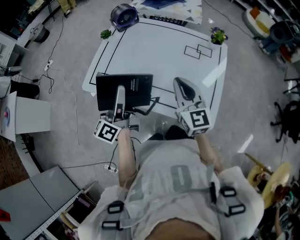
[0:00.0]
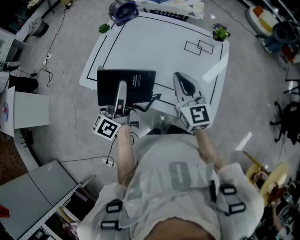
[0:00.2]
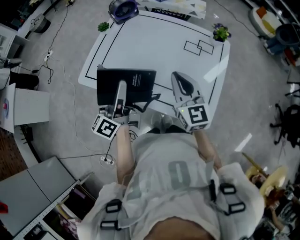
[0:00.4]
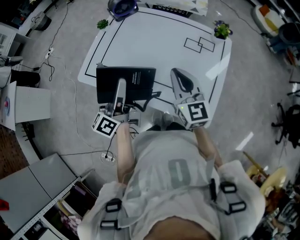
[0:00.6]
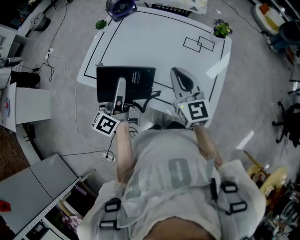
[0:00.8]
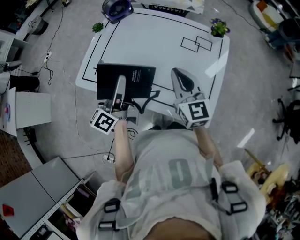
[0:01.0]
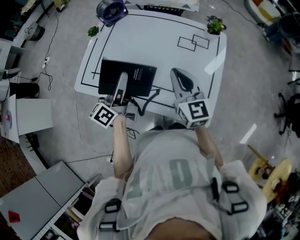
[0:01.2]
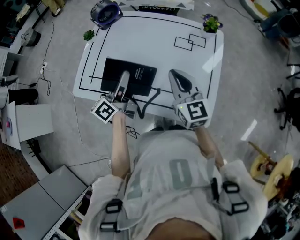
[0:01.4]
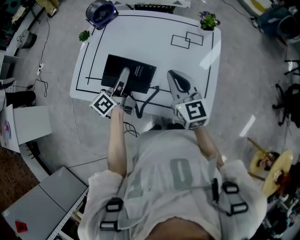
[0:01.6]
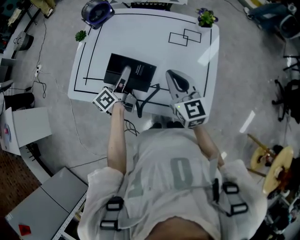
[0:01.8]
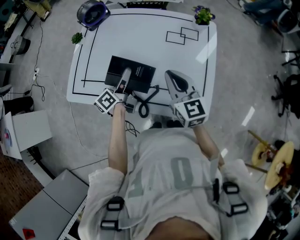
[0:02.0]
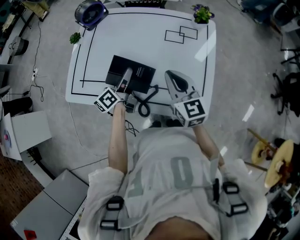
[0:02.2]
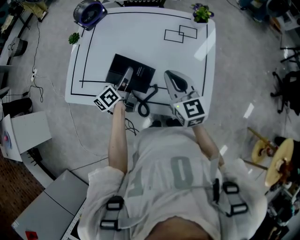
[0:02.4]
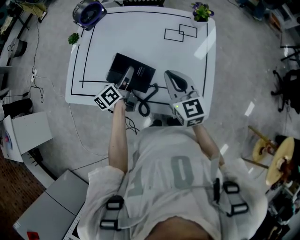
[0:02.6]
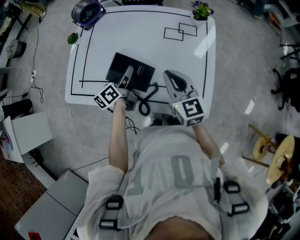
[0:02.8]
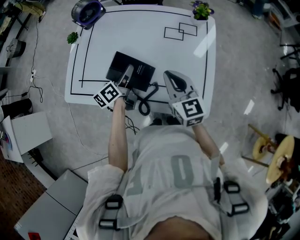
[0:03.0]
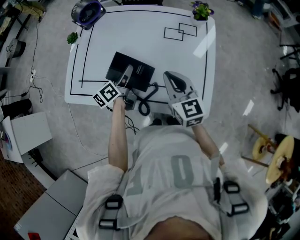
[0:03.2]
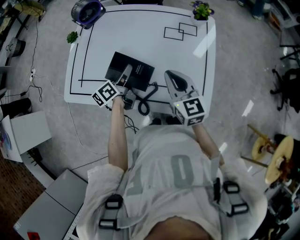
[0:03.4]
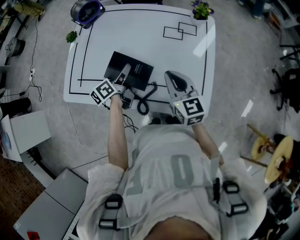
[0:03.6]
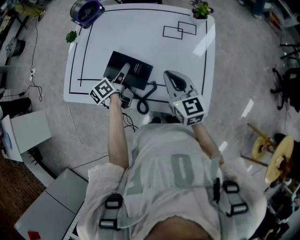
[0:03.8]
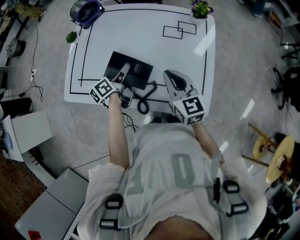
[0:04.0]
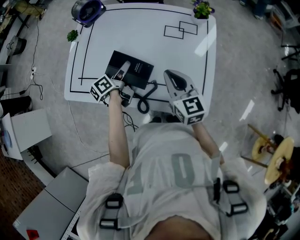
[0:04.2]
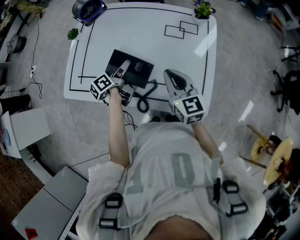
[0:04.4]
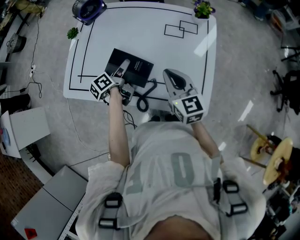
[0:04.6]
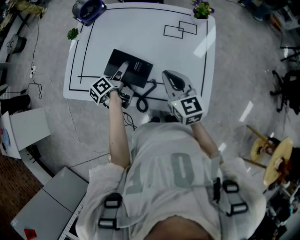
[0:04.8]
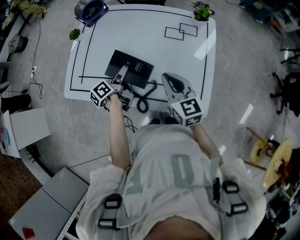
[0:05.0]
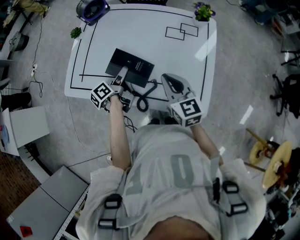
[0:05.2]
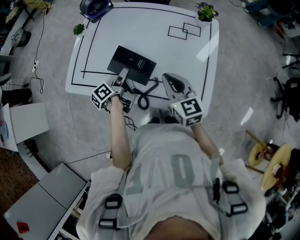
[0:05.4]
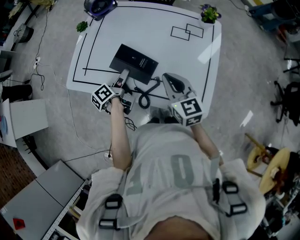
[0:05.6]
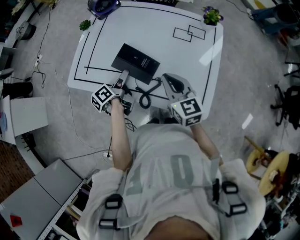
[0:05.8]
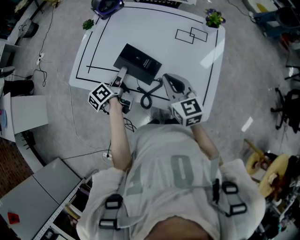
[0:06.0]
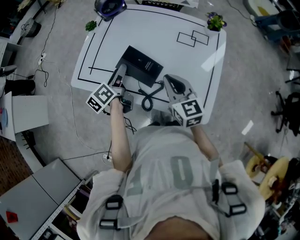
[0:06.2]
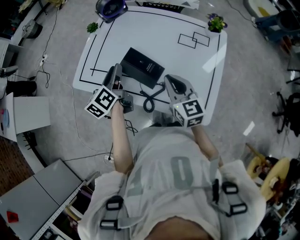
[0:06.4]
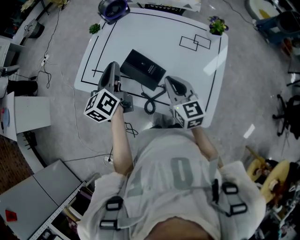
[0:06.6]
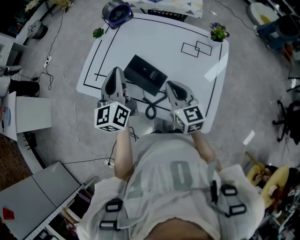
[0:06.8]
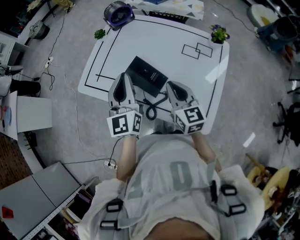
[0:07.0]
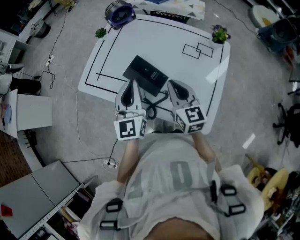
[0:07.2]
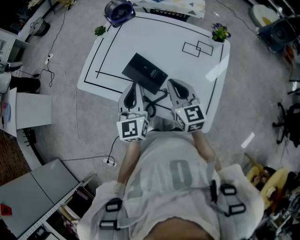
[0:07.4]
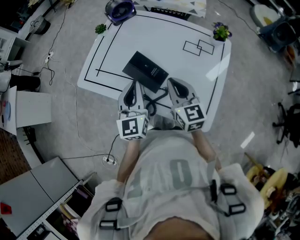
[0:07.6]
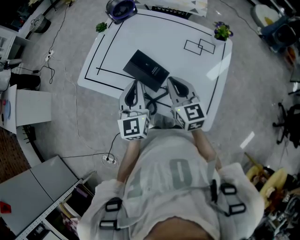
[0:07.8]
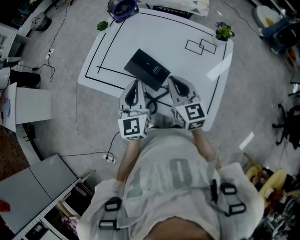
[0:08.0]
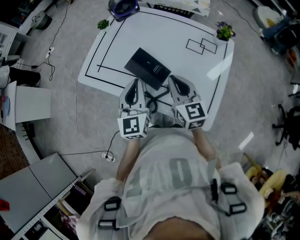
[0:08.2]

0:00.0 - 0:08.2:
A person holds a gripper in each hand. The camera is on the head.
0:00.0 - 0:01.6: The right gripper goes roughly 5 cm to the right, while the left gripper heads forward, to the right and downward, covering roughly 15 cm, and swivels some 20 degrees.
0:01.6 - 0:03.2: The left gripper travels downward by some 10 cm.
0:03.2 - 0:05.0: The left gripper rotates some 20 degrees, and opens its fingers.
0:05.0 - 0:06.6: The left gripper heads upward and to the left, covering about 20 cm, rotates approximately 50 degrees, and closes up.
0:06.6 - 0:08.2: The left gripper shifts some 10 cm backward and to the right, and changes its angle by about 30 degrees.

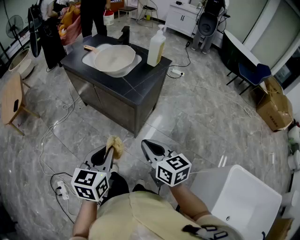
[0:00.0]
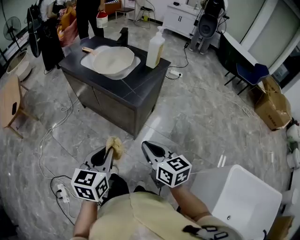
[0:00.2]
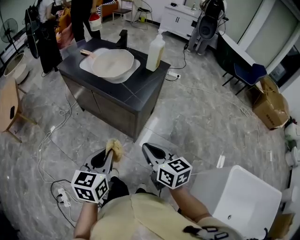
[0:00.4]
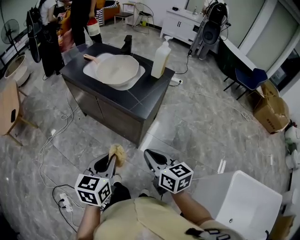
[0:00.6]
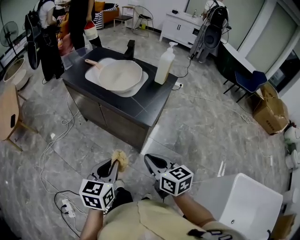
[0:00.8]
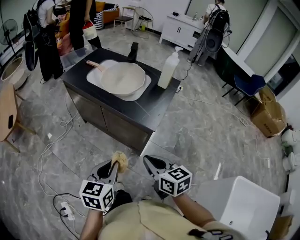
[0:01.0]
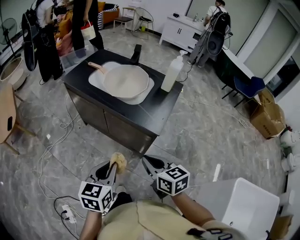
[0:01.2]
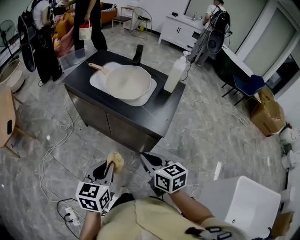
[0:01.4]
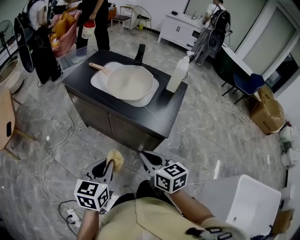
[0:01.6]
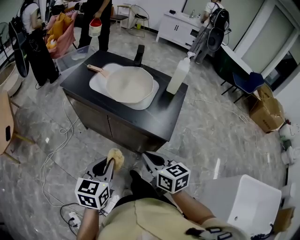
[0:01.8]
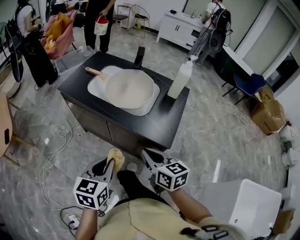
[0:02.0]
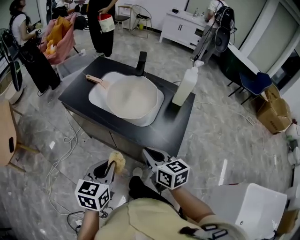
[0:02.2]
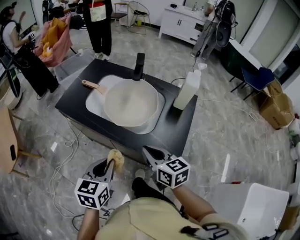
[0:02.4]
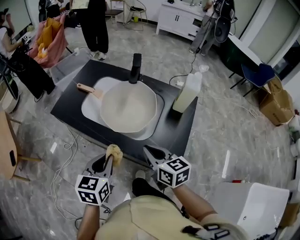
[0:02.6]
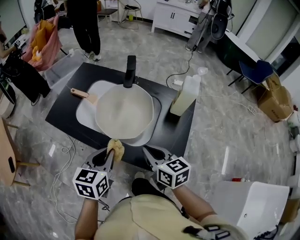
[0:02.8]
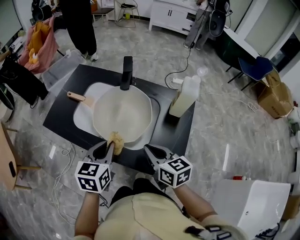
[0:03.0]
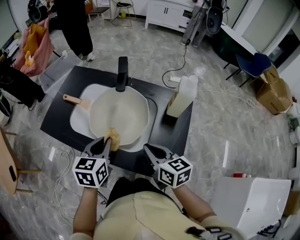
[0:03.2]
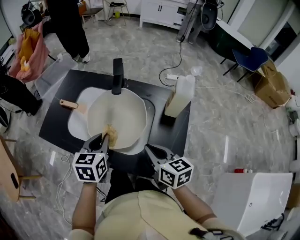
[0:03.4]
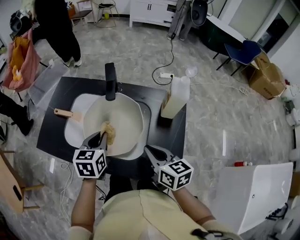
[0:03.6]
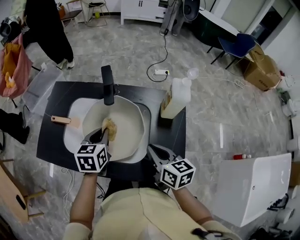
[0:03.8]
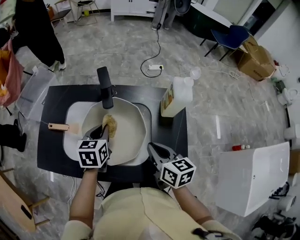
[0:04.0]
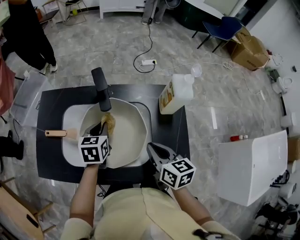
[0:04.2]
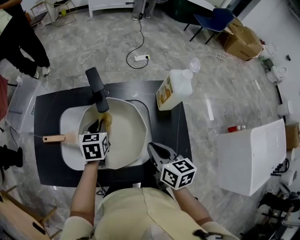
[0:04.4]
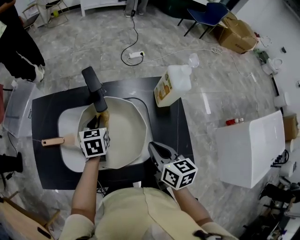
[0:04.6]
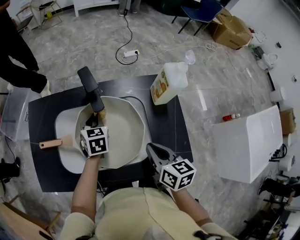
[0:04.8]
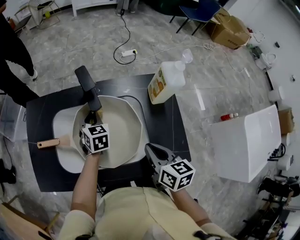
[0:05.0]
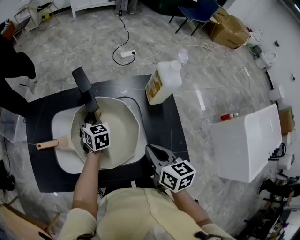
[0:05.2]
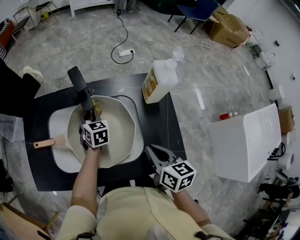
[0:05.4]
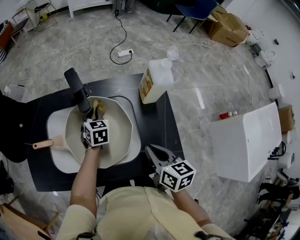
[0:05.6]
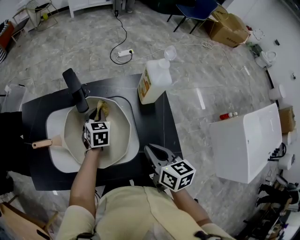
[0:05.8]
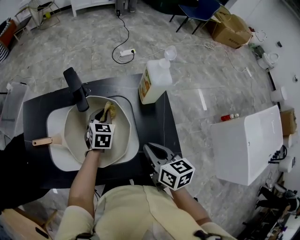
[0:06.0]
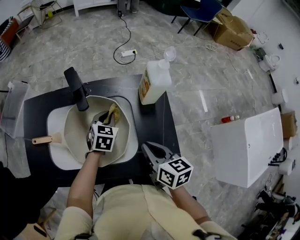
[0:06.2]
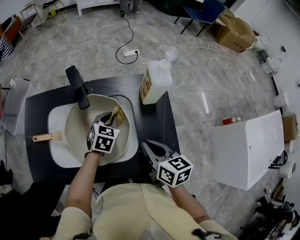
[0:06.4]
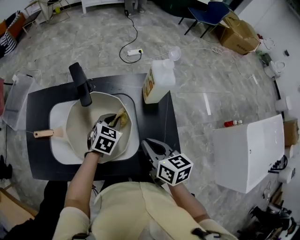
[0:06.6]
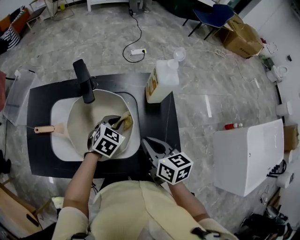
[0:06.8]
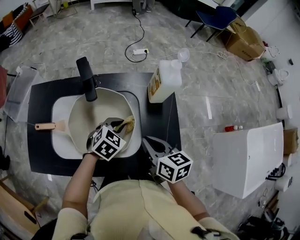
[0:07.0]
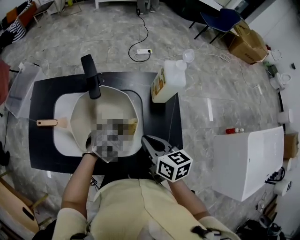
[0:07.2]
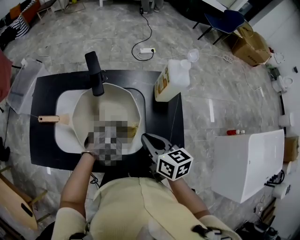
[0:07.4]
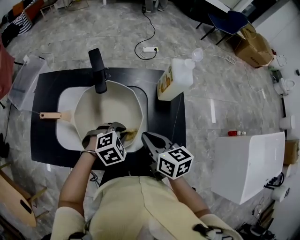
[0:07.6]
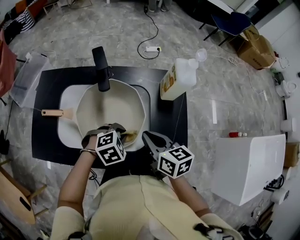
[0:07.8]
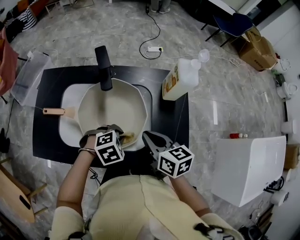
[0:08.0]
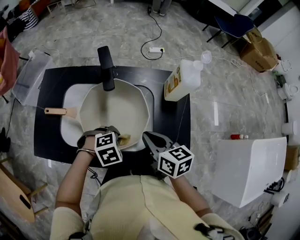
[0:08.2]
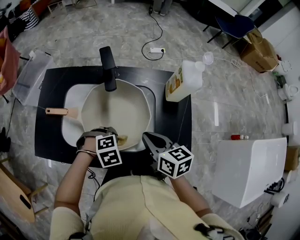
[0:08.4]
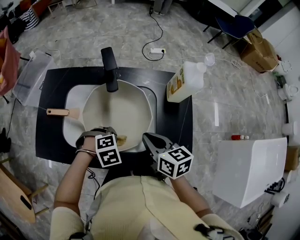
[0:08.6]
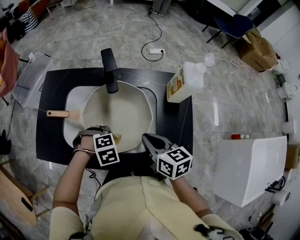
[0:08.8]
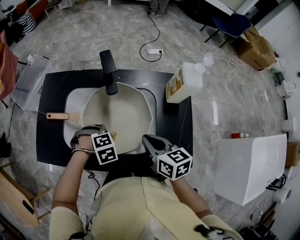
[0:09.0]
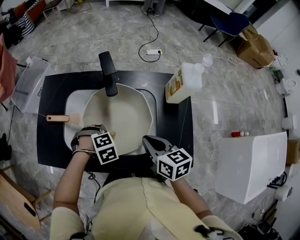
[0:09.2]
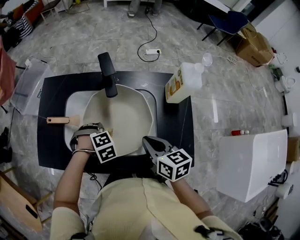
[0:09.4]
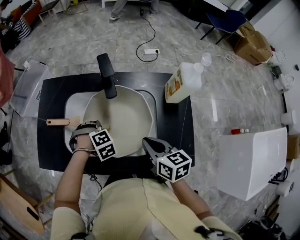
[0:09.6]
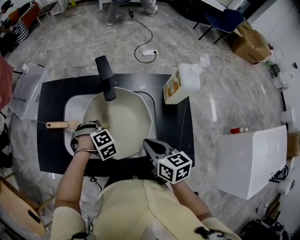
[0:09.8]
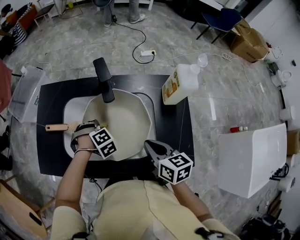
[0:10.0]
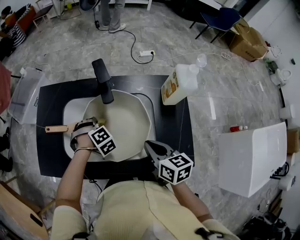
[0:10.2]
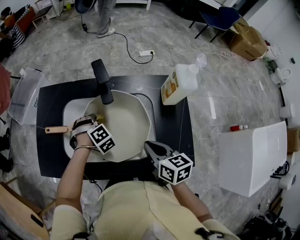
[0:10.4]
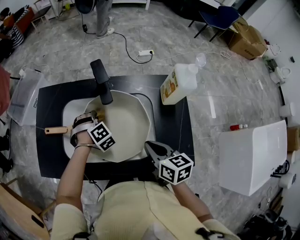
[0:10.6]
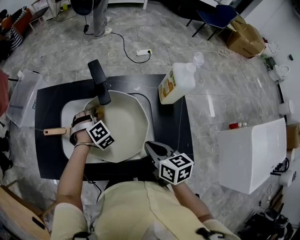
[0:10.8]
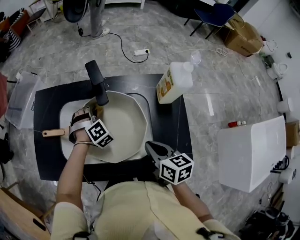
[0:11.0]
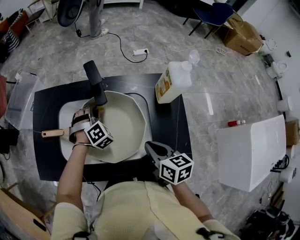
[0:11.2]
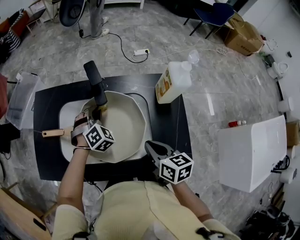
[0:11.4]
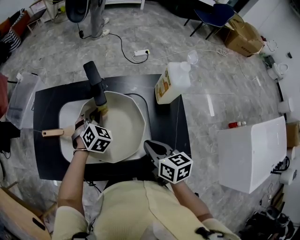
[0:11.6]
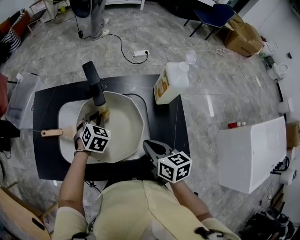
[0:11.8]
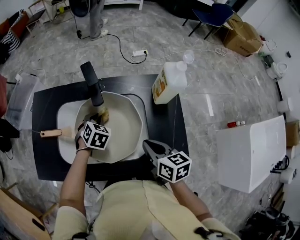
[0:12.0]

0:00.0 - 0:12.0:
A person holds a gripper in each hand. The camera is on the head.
0:00.0 - 0:01.6: Both grippers move to the left and forward, roughly 25 cm.
0:01.6 - 0:03.0: Both grippers travel together forward, some 35 cm.
0:03.0 - 0:04.4: The right gripper moves forward, about 10 cm, and rotates some 30 degrees, while the left gripper moves forward, approximately 25 cm, and changes its angle by roughly 20 degrees.
0:04.4 - 0:06.0: The right gripper moves some 5 cm. The left gripper goes roughly 10 cm to the right.
0:06.0 - 0:07.6: The left gripper goes approximately 15 cm backward, and rotates about 50 degrees.
0:07.6 - 0:09.0: The left gripper moves roughly 15 cm, and turns by approximately 30 degrees.
0:09.0 - 0:10.4: The left gripper changes place by approximately 15 cm, and rotates roughly 30 degrees.
0:10.4 - 0:12.0: The left gripper heads to the right, covering about 5 cm, and changes its angle by some 40 degrees.

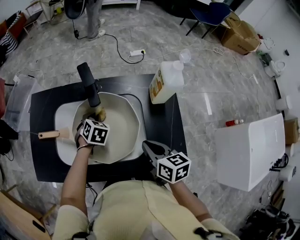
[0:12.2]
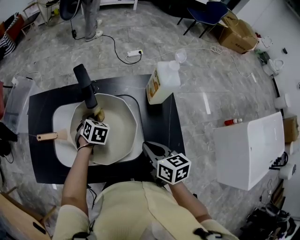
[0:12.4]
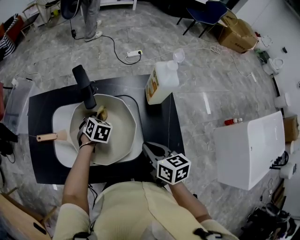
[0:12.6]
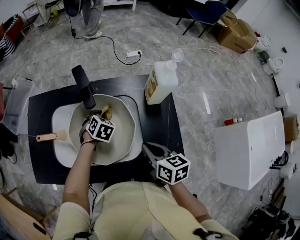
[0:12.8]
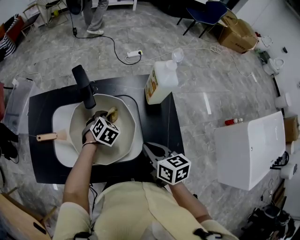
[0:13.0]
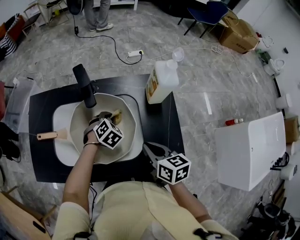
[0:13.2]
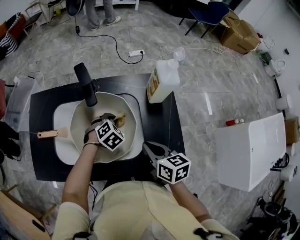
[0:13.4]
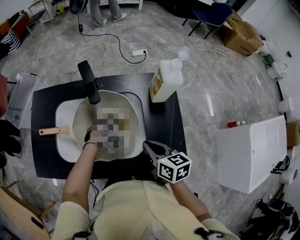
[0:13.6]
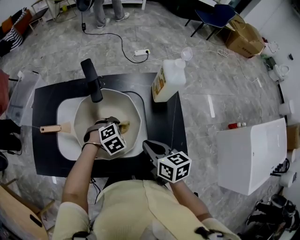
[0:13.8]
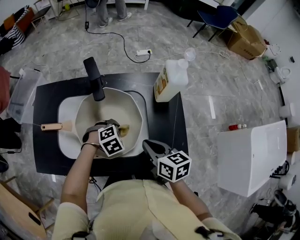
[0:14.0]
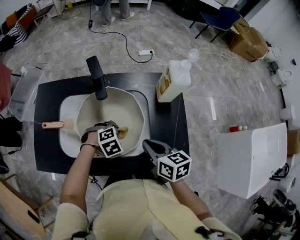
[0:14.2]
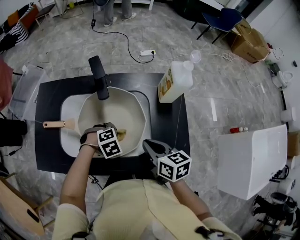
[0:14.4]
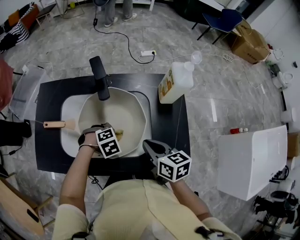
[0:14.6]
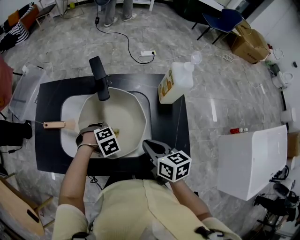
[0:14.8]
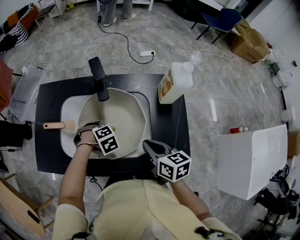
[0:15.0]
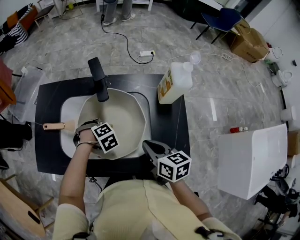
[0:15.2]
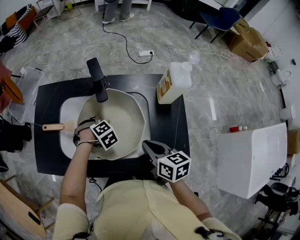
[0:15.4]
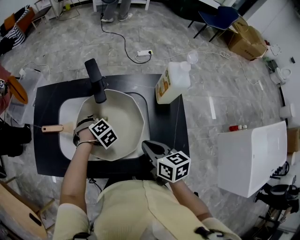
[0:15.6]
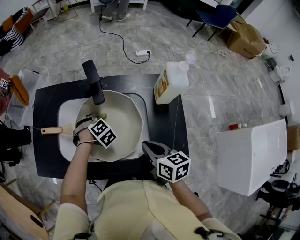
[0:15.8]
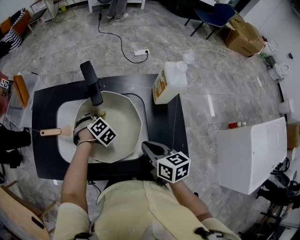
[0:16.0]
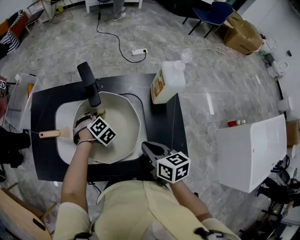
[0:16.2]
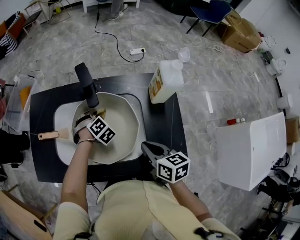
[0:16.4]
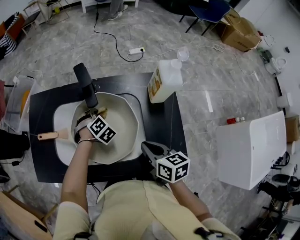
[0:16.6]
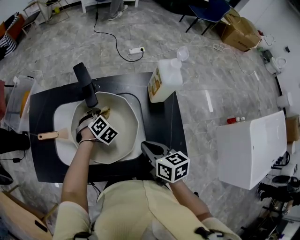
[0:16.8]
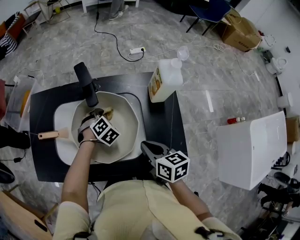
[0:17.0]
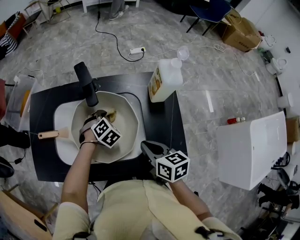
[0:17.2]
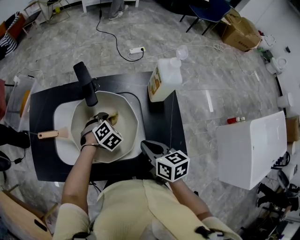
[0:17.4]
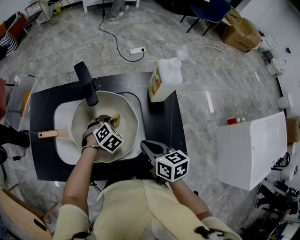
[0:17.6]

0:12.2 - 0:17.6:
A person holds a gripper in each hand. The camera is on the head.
0:12.2 - 0:13.6: The left gripper moves to the right and backward, roughly 15 cm, and swivels some 40 degrees.
0:13.6 - 0:15.0: The left gripper moves approximately 10 cm, and swivels approximately 20 degrees.
0:15.0 - 0:16.2: The left gripper shifts by approximately 10 cm, and changes its angle by about 30 degrees.
0:16.2 - 0:17.6: The left gripper heads backward and to the right, covering some 10 cm.
